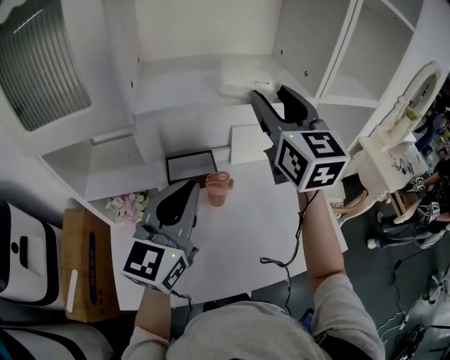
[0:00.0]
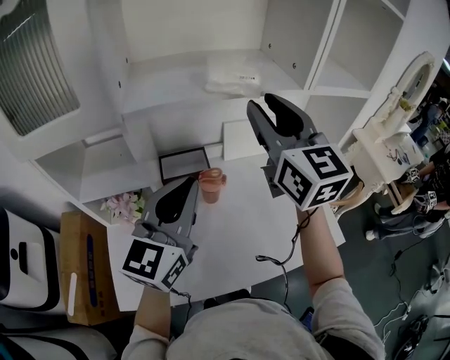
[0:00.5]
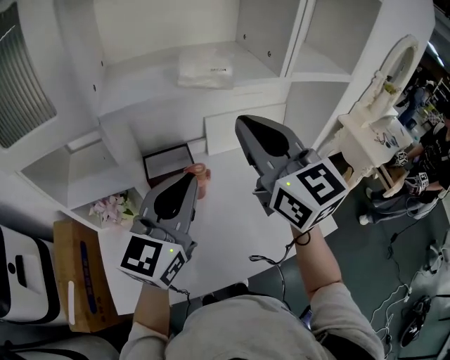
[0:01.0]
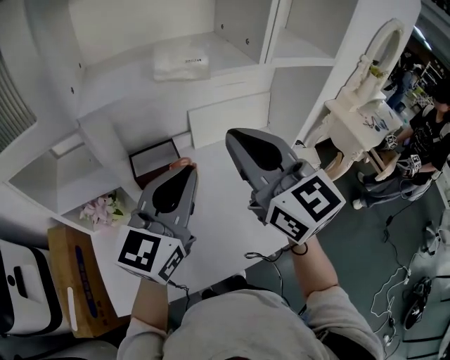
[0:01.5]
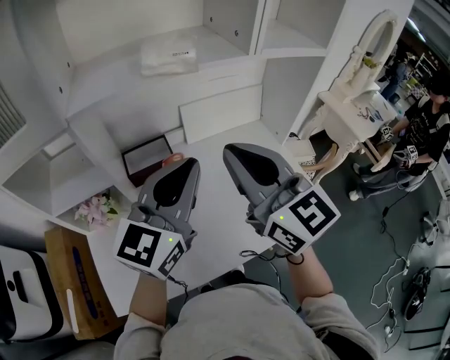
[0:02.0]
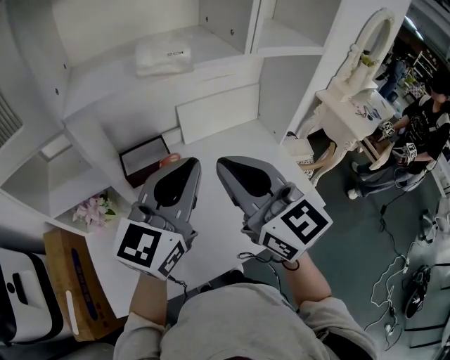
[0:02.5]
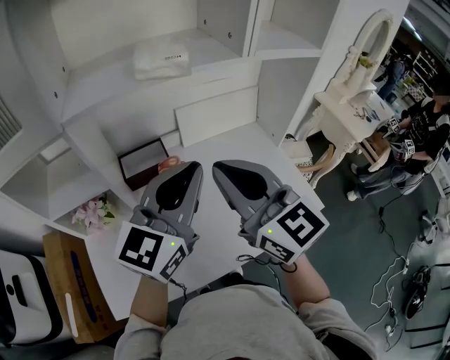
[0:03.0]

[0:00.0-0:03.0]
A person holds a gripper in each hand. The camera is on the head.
0:00.0 to 0:01.5: The right gripper moves backward and downward, about 15 cm, and closes up; the left gripper goes about 10 cm to the right.
0:01.5 to 0:03.0: The right gripper is displaced downward by roughly 5 cm.

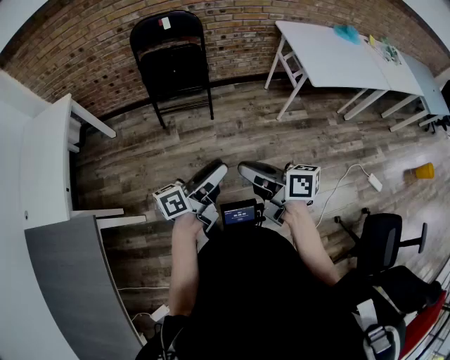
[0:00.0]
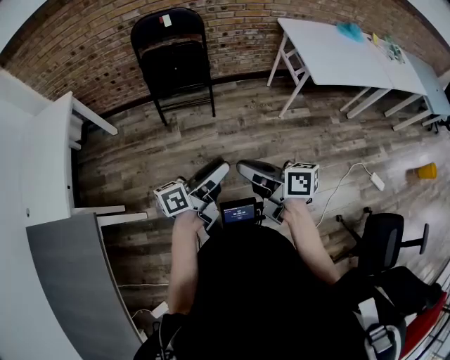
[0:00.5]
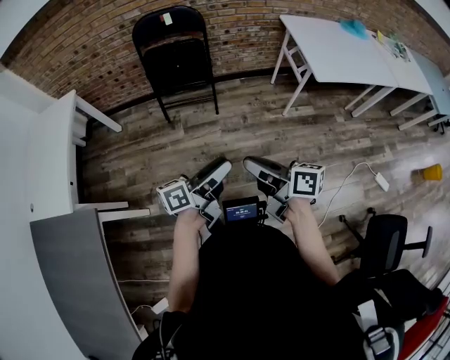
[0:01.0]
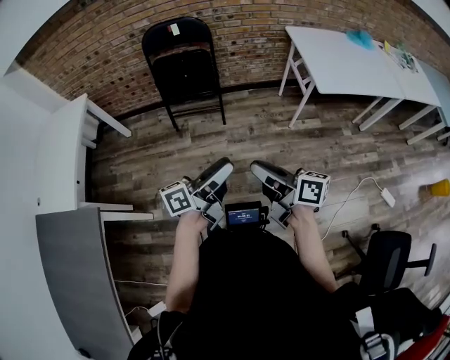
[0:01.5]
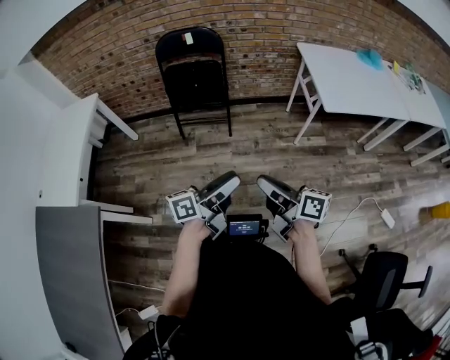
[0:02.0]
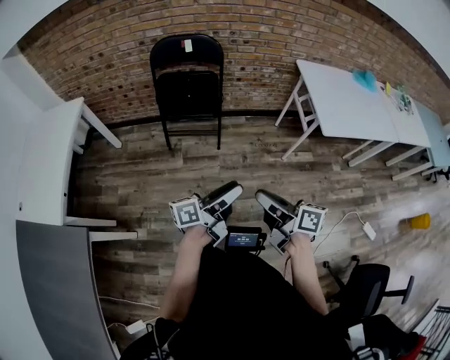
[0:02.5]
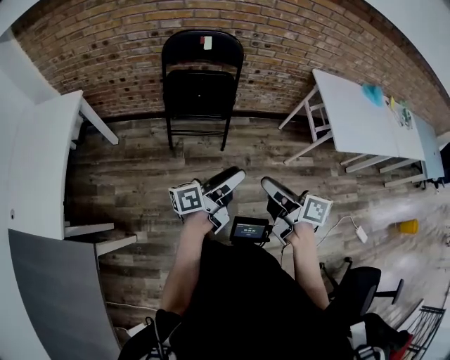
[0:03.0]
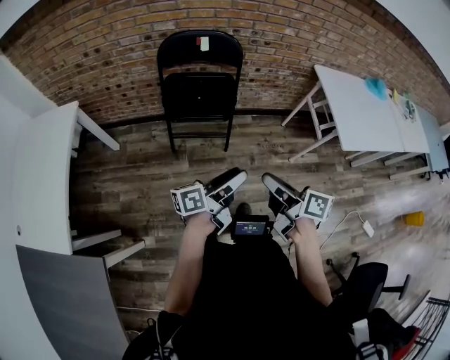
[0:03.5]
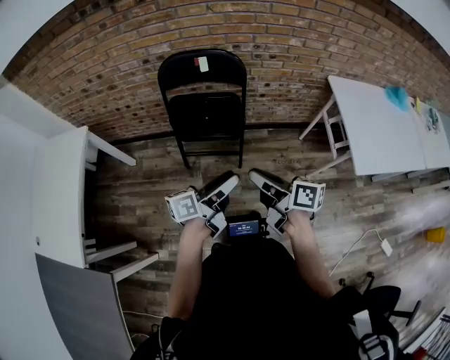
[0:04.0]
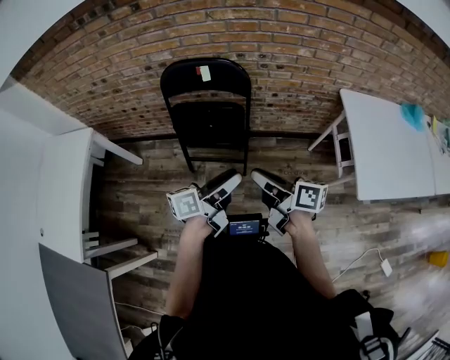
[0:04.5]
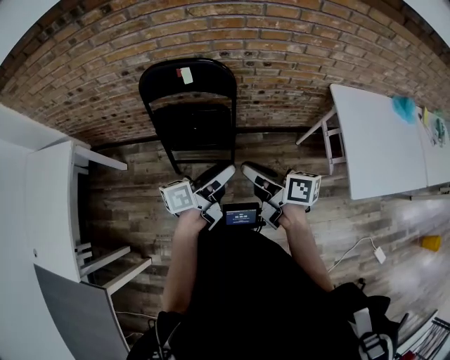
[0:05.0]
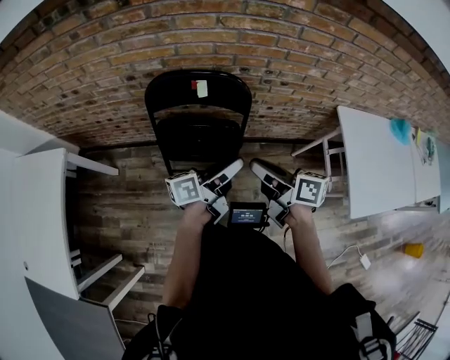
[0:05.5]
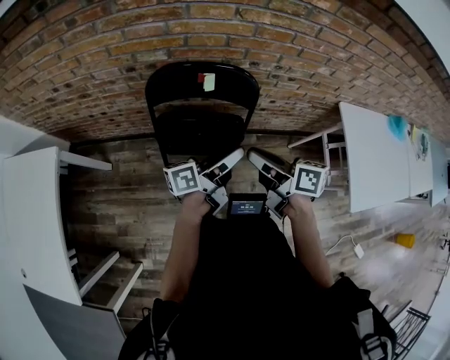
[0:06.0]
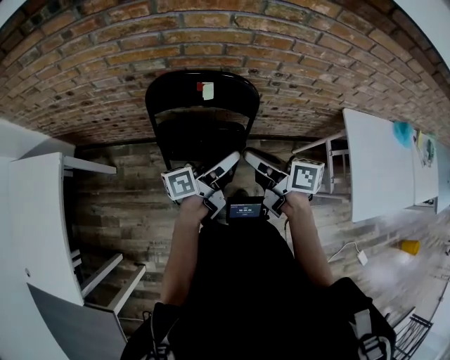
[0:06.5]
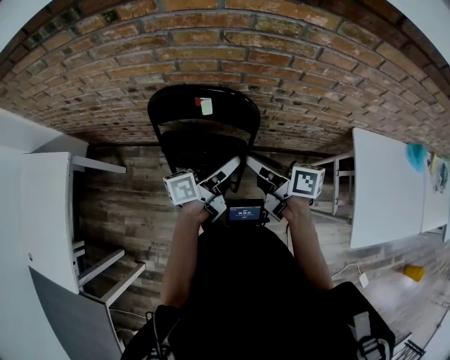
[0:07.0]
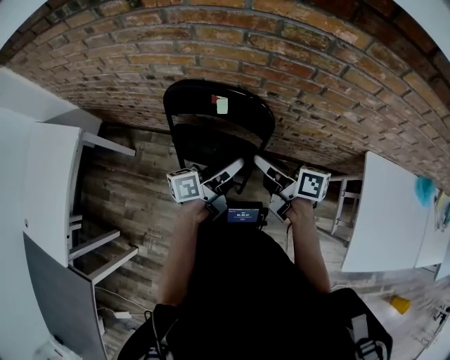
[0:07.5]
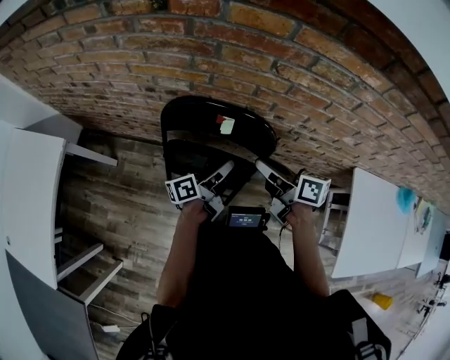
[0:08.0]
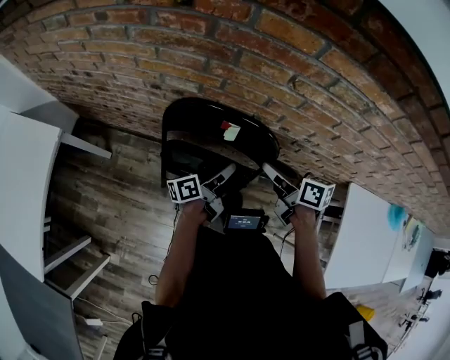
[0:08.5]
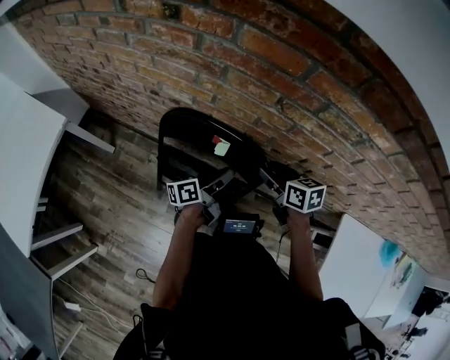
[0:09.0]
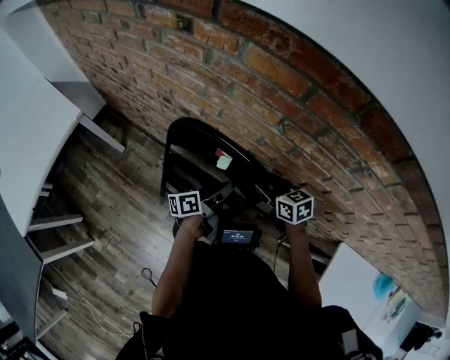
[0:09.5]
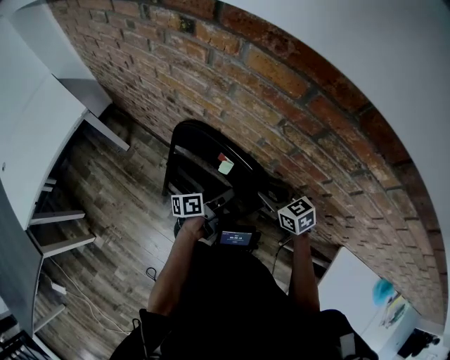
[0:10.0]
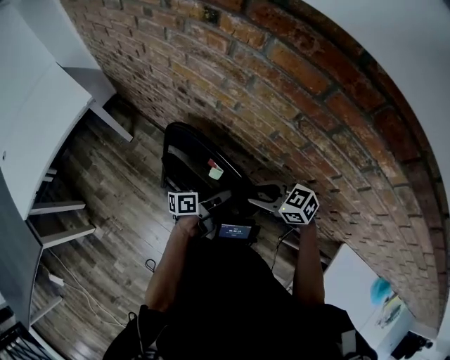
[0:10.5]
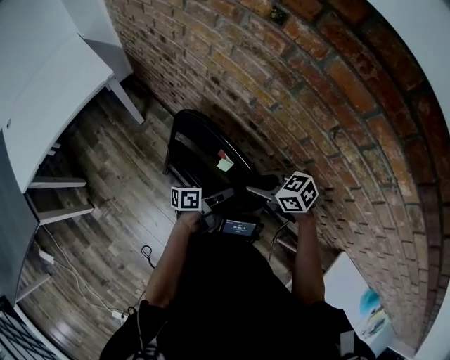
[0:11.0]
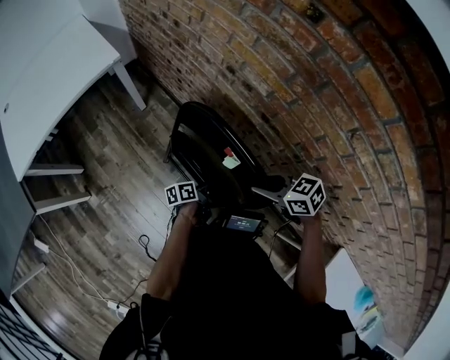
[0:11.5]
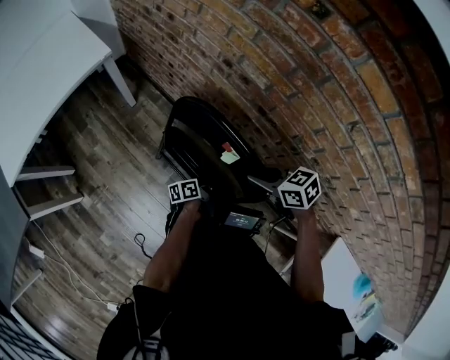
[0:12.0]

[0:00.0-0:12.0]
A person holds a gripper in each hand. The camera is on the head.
0:00.0 to 0:02.0: The right gripper moves about 10 cm.
0:02.0 to 0:04.0: The right gripper moves some 40 cm.
0:04.0 to 0:06.0: The right gripper ends up about 25 cm from where it was.
0:06.0 to 0:08.0: The right gripper shifts by about 15 cm.
0:08.0 to 0:10.0: The right gripper moves some 15 cm, and rolls counterclockwise, seen from behind, by some 50 degrees.
0:10.0 to 0:12.0: The right gripper changes place by some 20 cm, and swivels about 30 degrees.

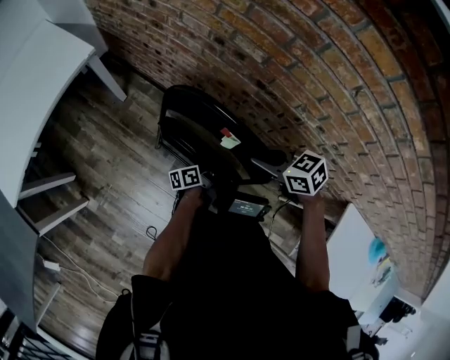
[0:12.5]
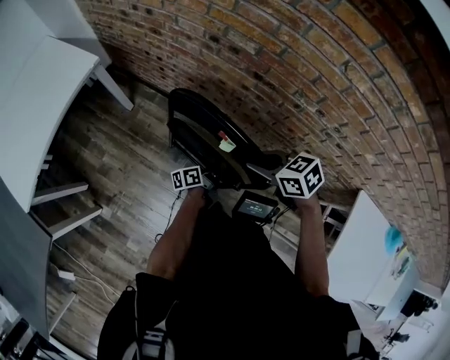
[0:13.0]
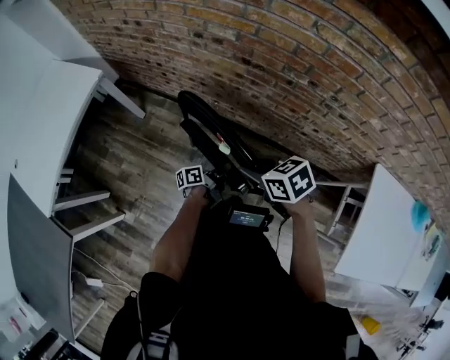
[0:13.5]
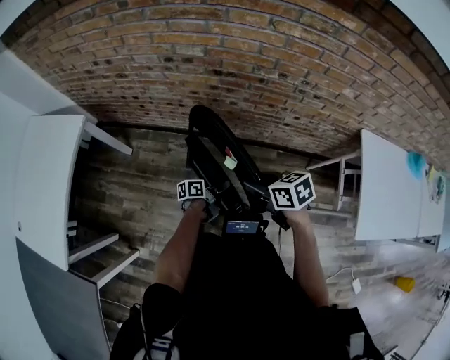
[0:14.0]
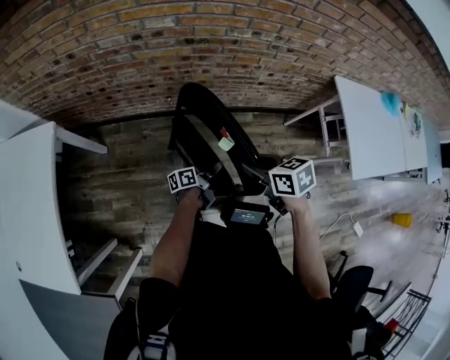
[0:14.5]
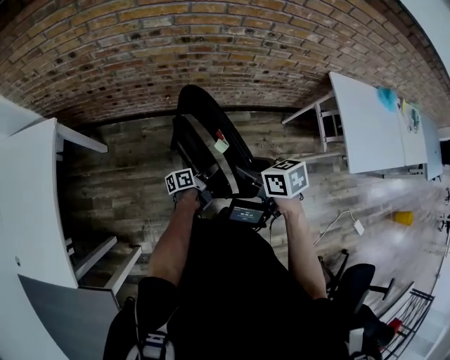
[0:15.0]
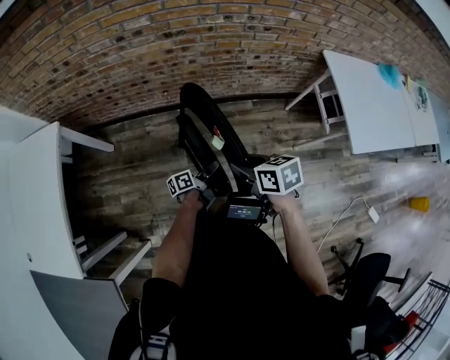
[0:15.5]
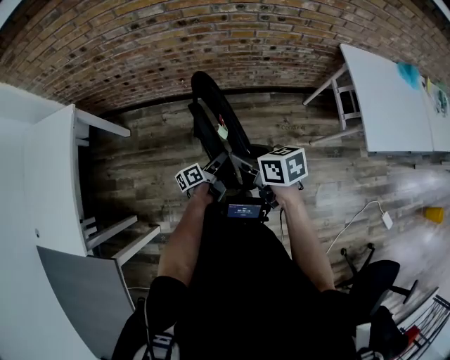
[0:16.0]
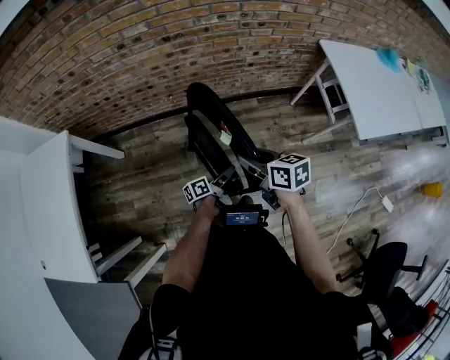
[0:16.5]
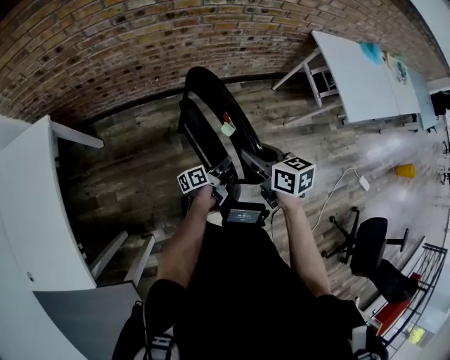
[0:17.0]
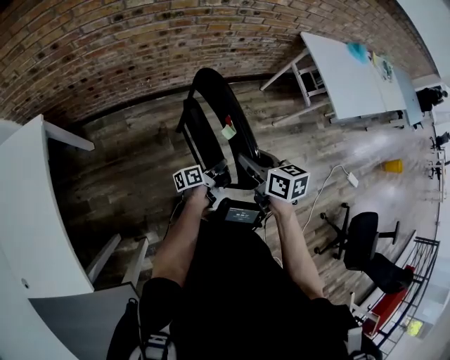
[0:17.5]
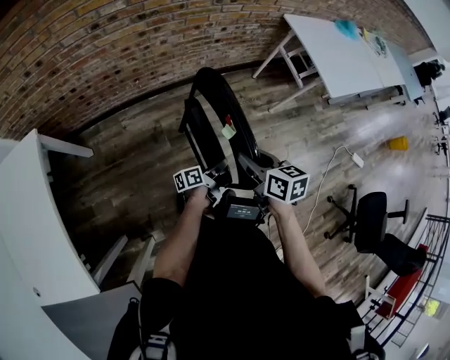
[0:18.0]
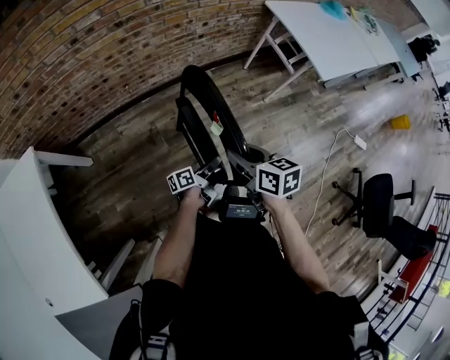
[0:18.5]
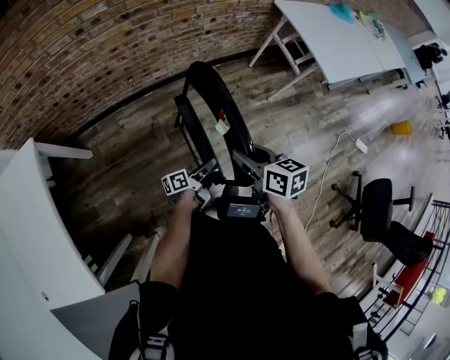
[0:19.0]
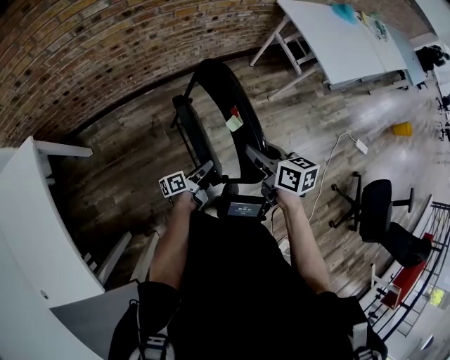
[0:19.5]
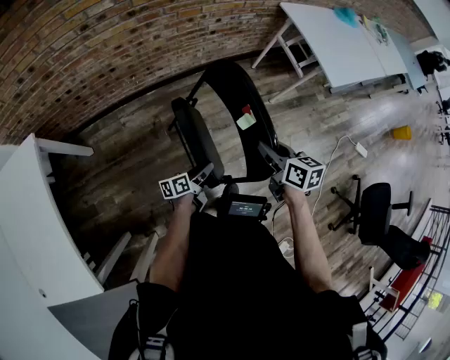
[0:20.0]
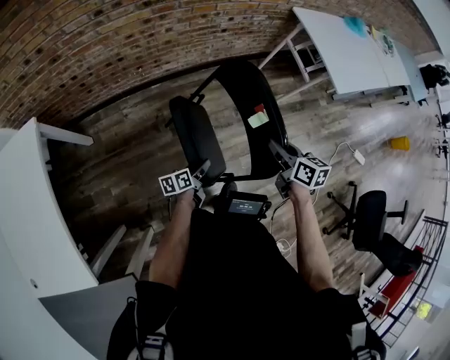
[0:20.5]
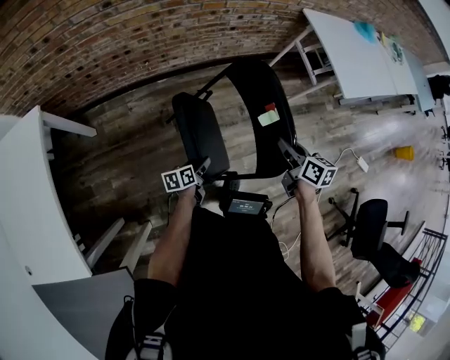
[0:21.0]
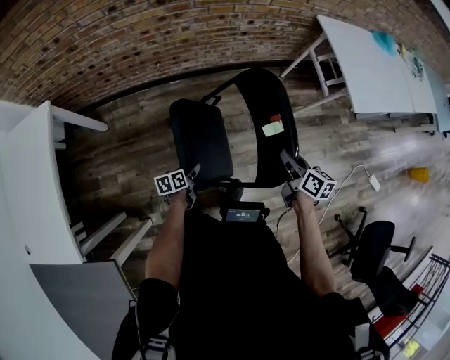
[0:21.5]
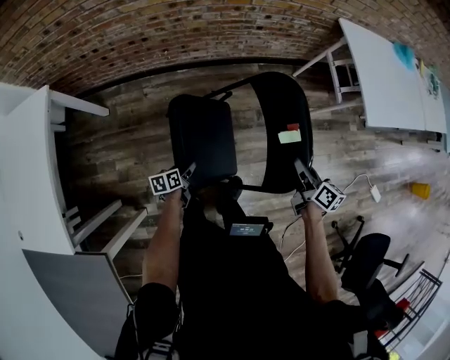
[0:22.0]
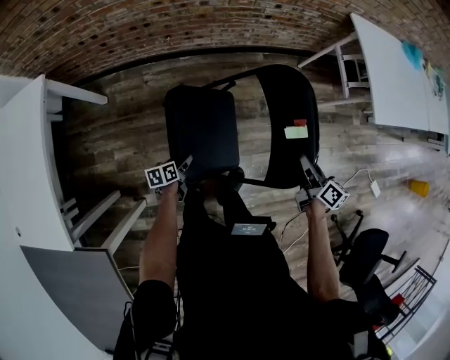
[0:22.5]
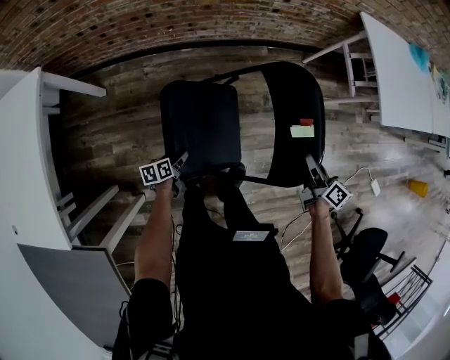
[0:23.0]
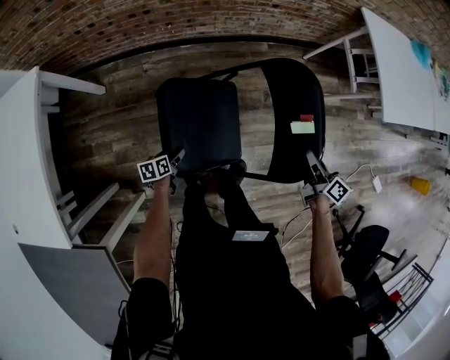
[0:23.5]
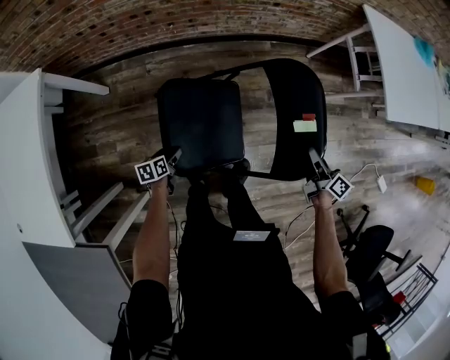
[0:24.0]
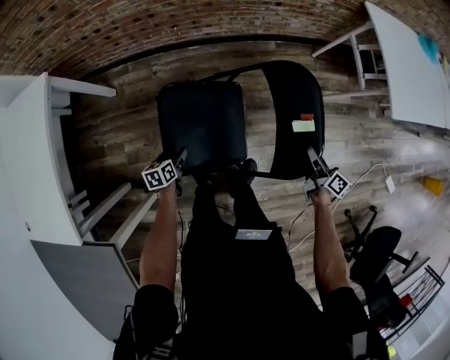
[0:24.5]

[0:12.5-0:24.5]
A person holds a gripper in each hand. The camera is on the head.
0:12.5 to 0:14.5: The right gripper moves about 25 cm, and turns by some 50 degrees.
0:14.5 to 0:16.5: The right gripper shifts by about 10 cm, and rotates roughly 20 degrees.
0:16.5 to 0:18.5: The right gripper ends up some 10 cm from where it was, and rotates about 20 degrees.
0:18.5 to 0:20.5: The right gripper moves roughly 10 cm.
0:20.5 to 0:22.5: The right gripper moves some 15 cm.
0:22.5 to 0:24.5: The right gripper moves downward, roughly 10 cm.
